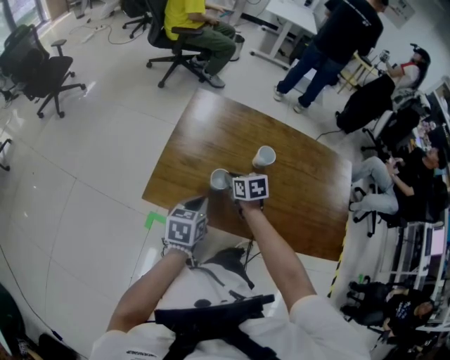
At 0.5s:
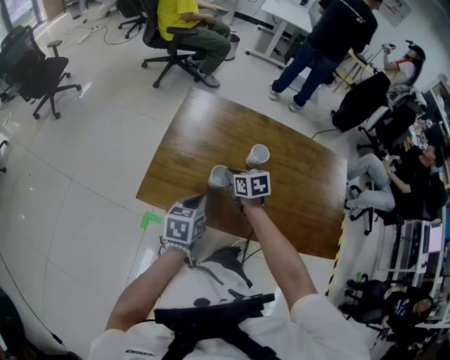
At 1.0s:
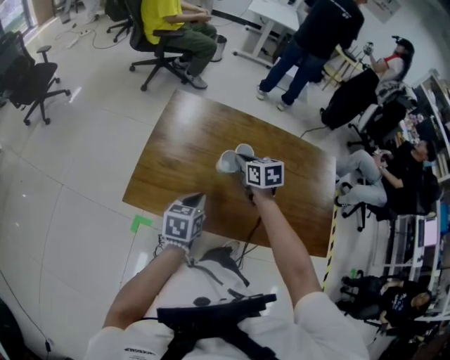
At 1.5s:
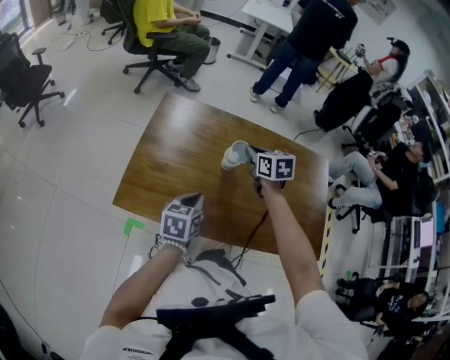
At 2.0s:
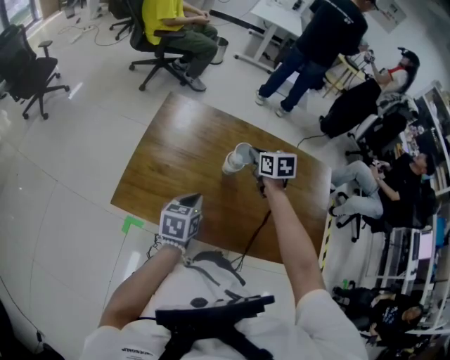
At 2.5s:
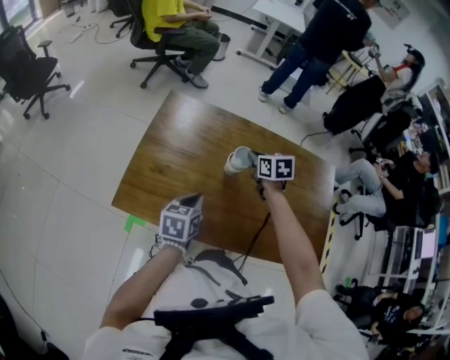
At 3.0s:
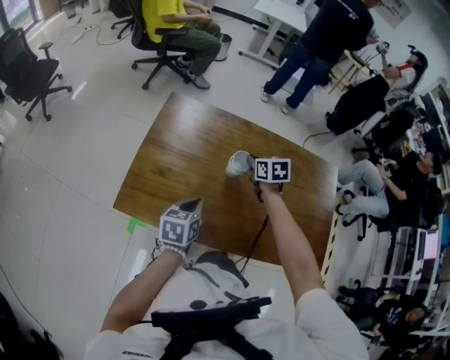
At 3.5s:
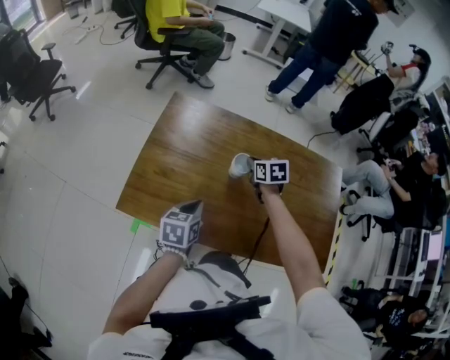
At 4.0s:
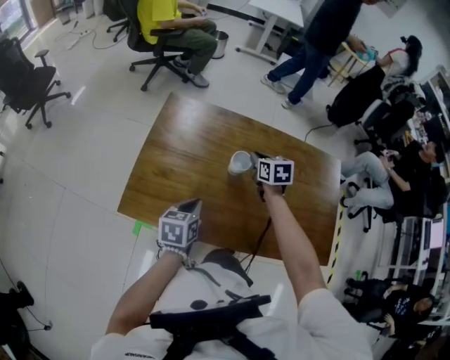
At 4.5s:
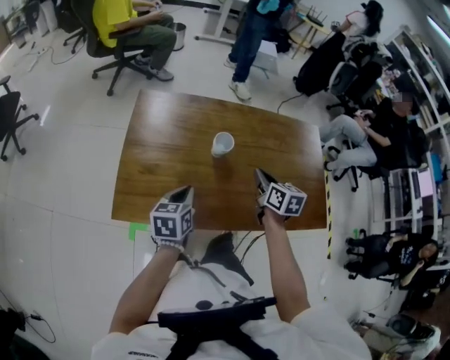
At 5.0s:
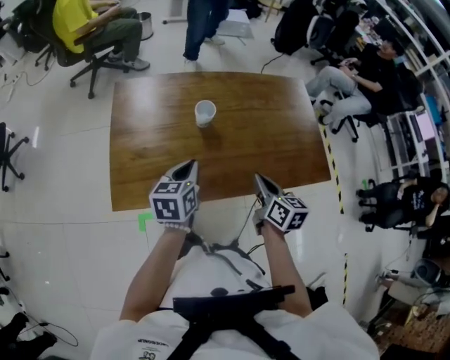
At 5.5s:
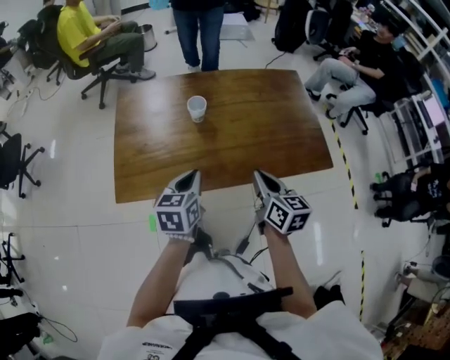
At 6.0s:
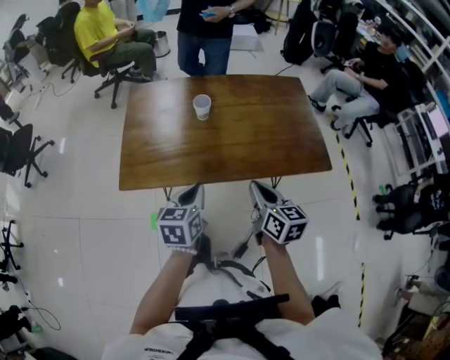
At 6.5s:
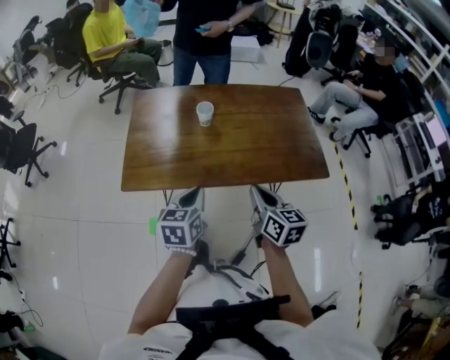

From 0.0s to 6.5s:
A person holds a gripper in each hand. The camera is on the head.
From 0.0s to 2.0s: The left gripper travels to the right and forward by about 10 cm. The right gripper shifts about 25 cm to the right, forward and upward.
From 2.0s to 4.5s: The right gripper shifts about 15 cm backward, and swivels approximately 30 degrees.
From 4.5s to 6.5s: The left gripper shifts some 20 cm backward and to the right. Meanwhile the right gripper moves backward, some 30 cm.

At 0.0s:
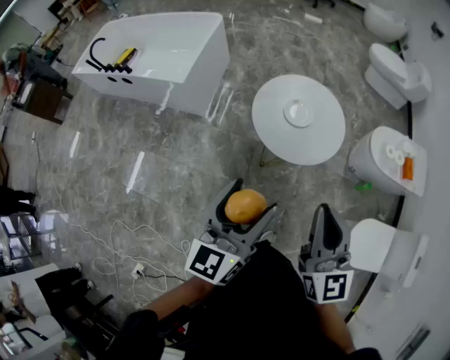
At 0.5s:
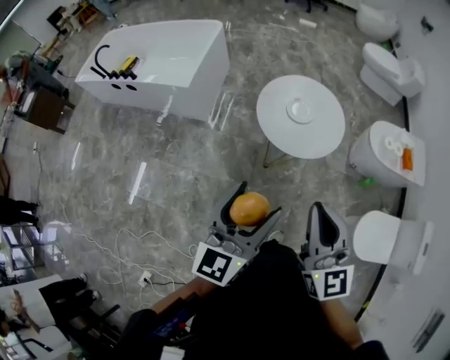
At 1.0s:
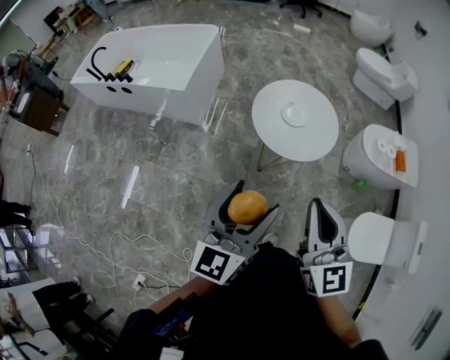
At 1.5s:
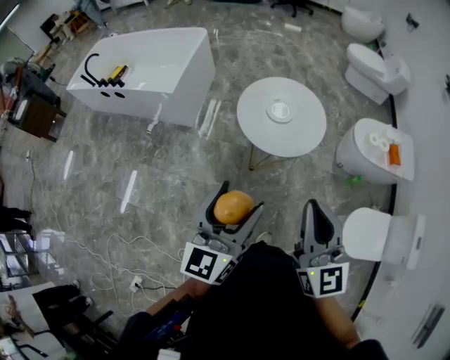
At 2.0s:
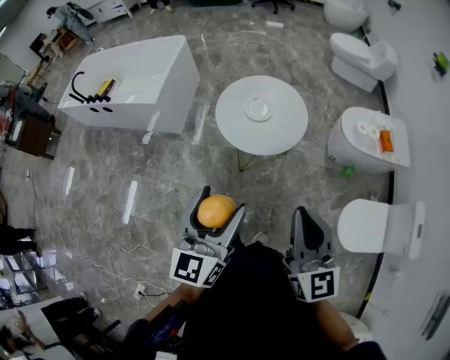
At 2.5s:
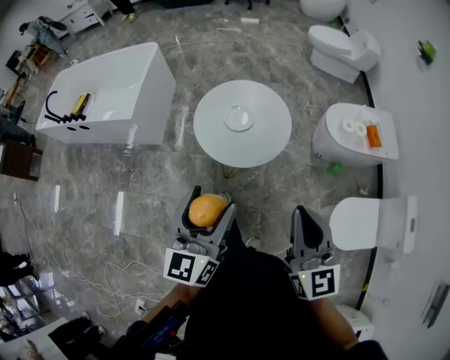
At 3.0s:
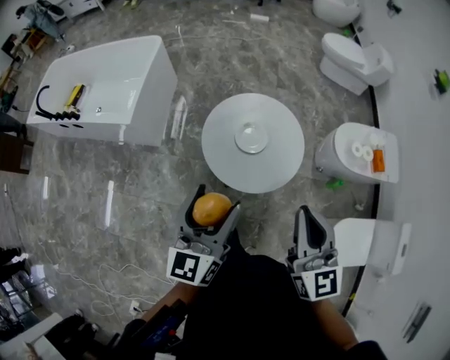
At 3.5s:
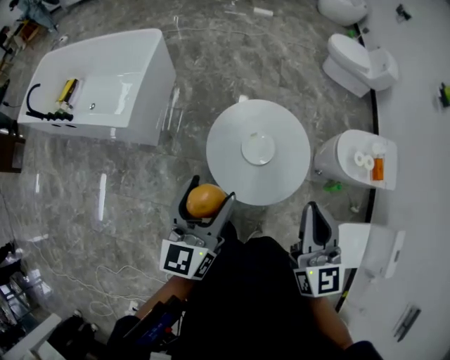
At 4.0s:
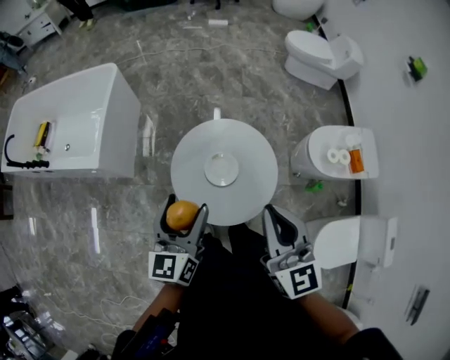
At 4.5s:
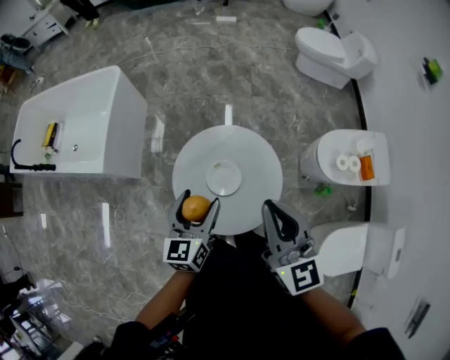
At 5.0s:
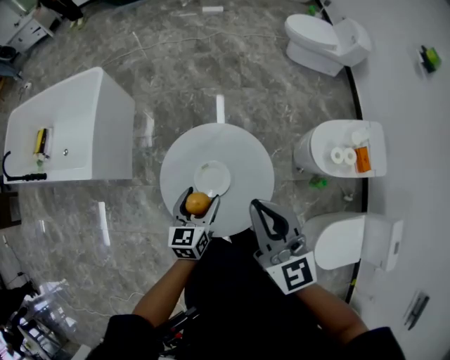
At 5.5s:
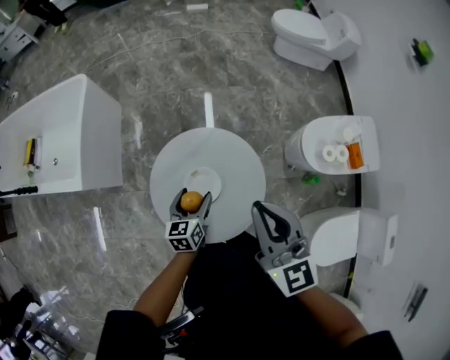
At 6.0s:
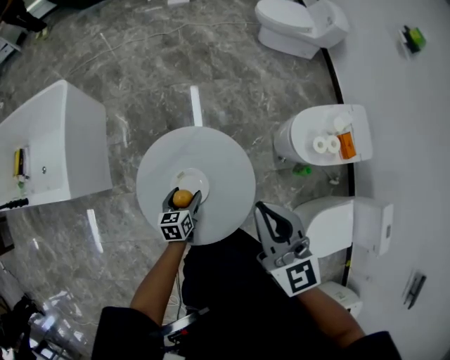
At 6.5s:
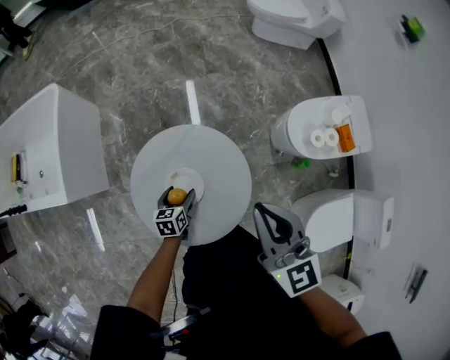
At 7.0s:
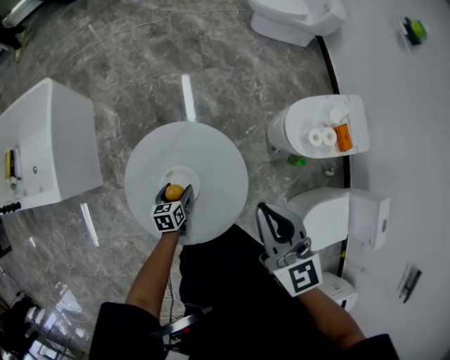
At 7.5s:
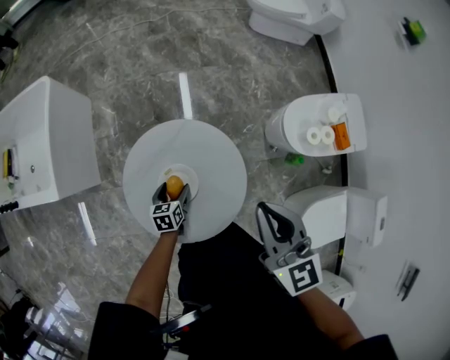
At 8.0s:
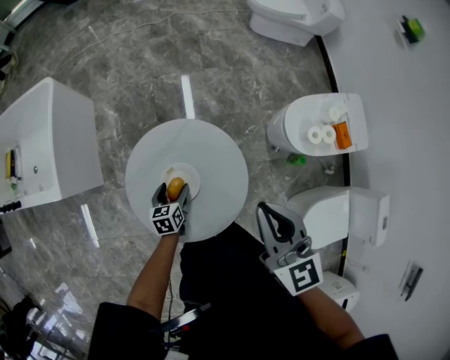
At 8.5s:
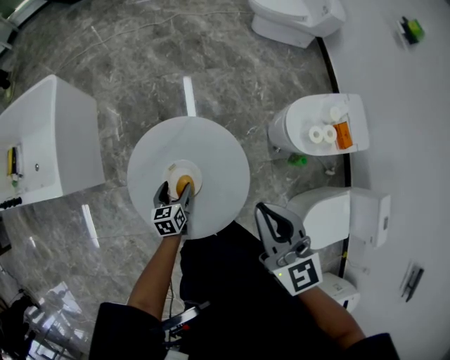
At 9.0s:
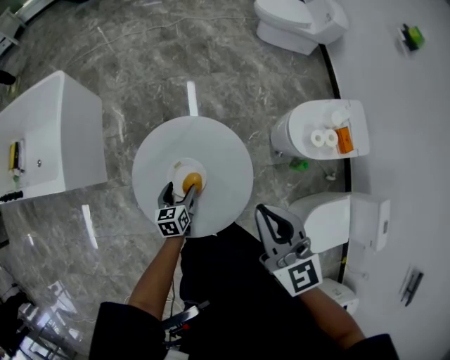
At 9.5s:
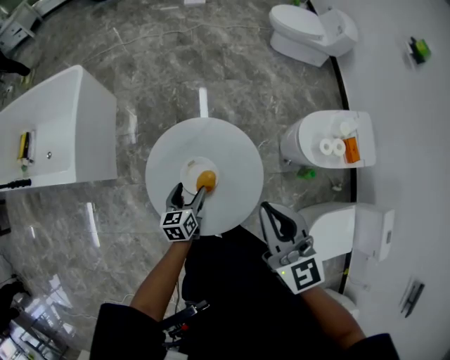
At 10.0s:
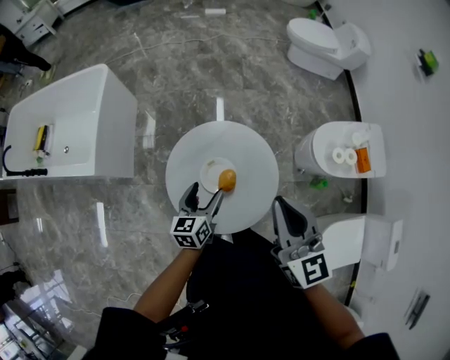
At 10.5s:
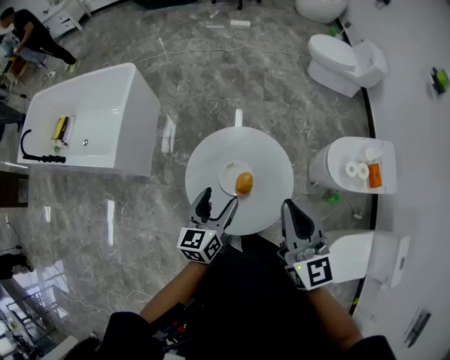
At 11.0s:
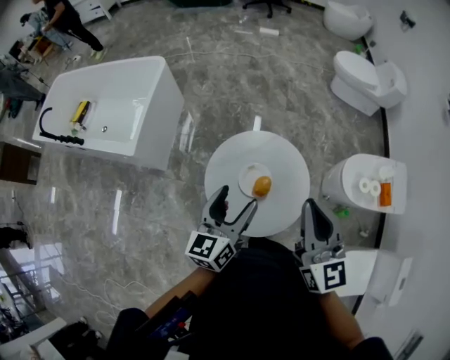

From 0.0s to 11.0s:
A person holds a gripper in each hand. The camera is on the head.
From 0.0s to 2.0s: Both grippers move backward and to the right, some 10 cm.
From 2.0s to 3.5s: The grippers both shift forward by about 30 cm.
From 3.5s to 5.5s: The left gripper goes approximately 35 cm downward, forward and to the right, and points its fingers roughly 30 degrees further downward, while the right gripper travels forward and to the right by some 20 cm.
From 5.5s to 7.5s: The left gripper heads downward, covering roughly 15 cm; the right gripper shifts approximately 5 cm to the right.
From 7.5s to 9.0s: The left gripper changes place by about 5 cm.
From 9.0s to 11.0s: The left gripper goes about 30 cm upward, and points its fingers roughly 30 degrees further upward, while the right gripper is displaced upward and to the left by some 10 cm.

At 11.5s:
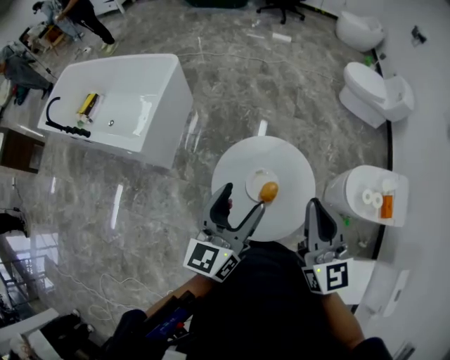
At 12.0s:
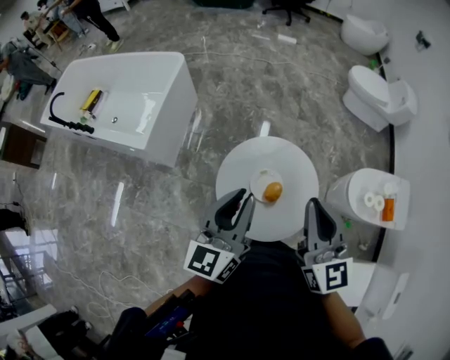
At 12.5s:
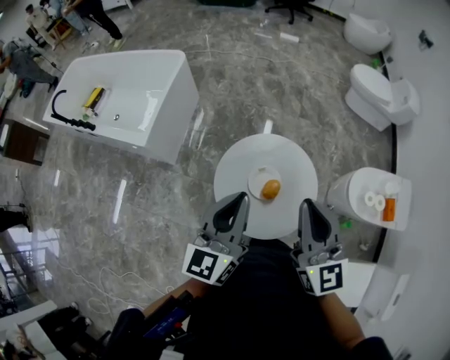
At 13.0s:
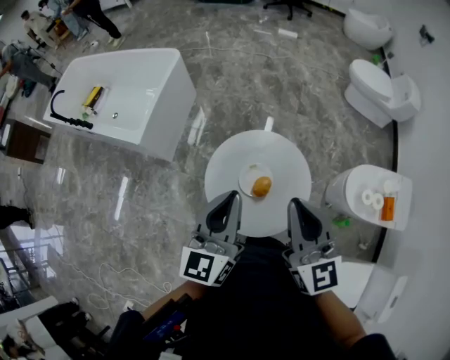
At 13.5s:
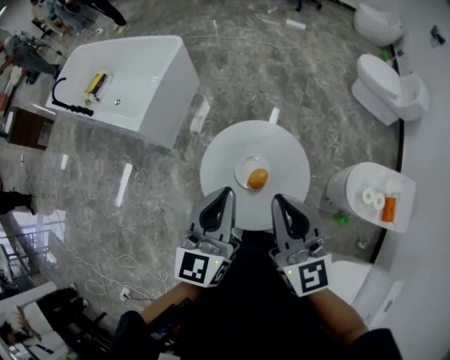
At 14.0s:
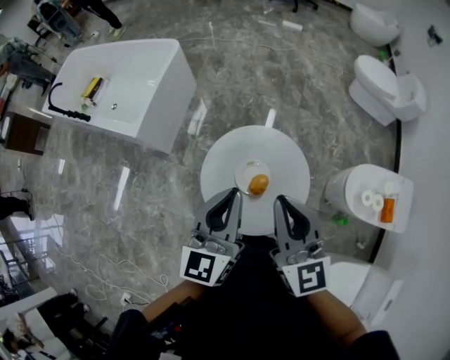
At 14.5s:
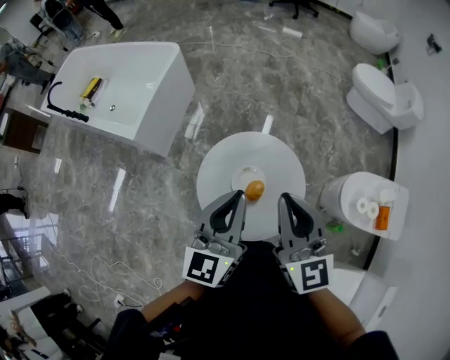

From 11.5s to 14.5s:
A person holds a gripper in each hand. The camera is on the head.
From 11.5s to 13.0s: The left gripper closes up.
From 13.0s to 14.5s: The grippers stay close to where they were, moving slightly.

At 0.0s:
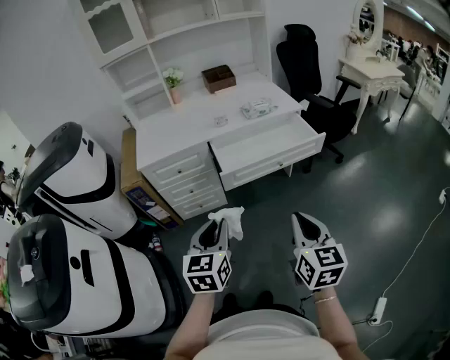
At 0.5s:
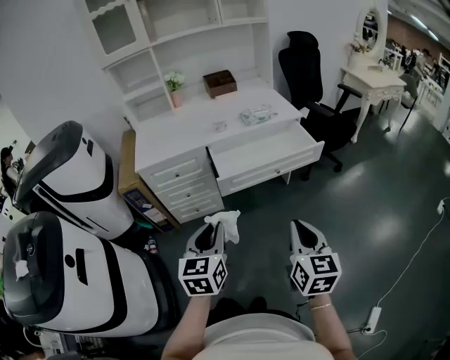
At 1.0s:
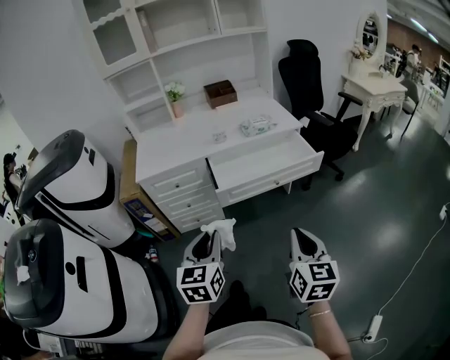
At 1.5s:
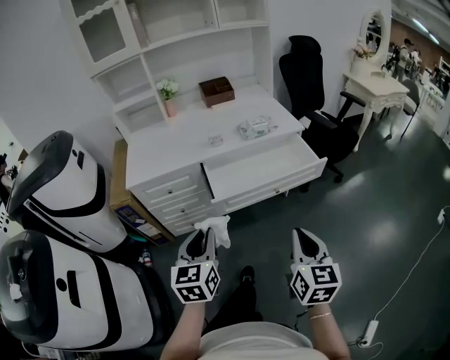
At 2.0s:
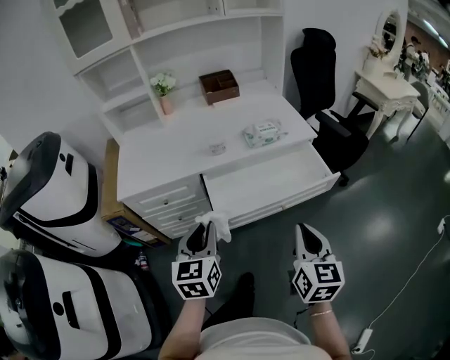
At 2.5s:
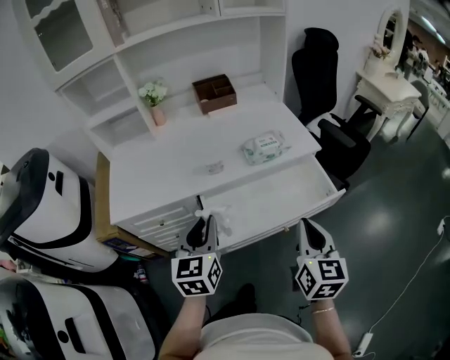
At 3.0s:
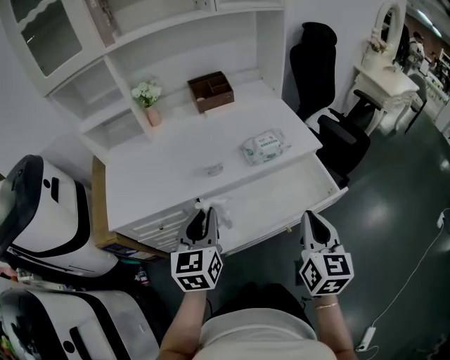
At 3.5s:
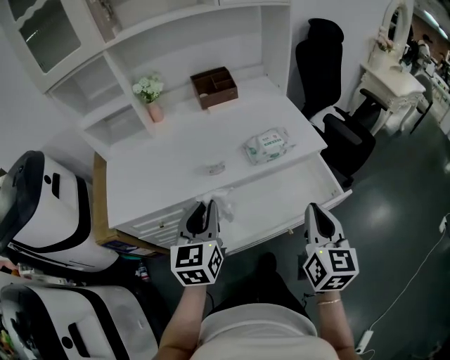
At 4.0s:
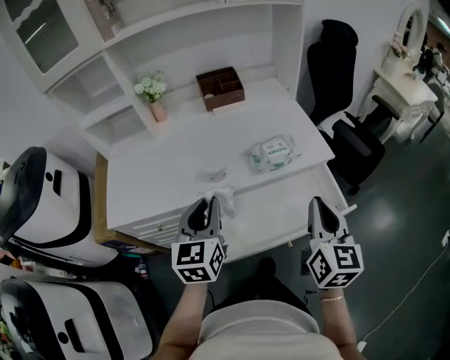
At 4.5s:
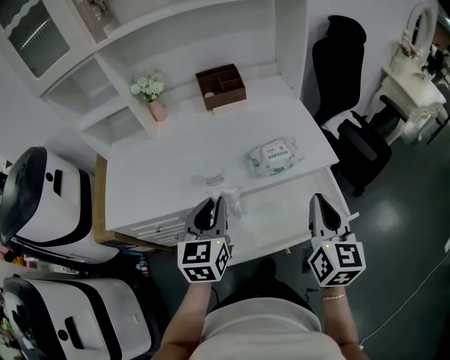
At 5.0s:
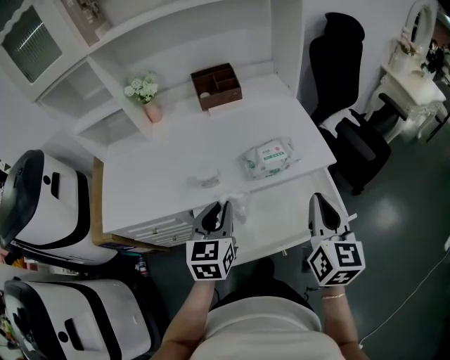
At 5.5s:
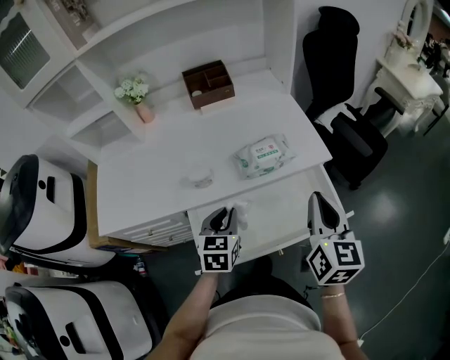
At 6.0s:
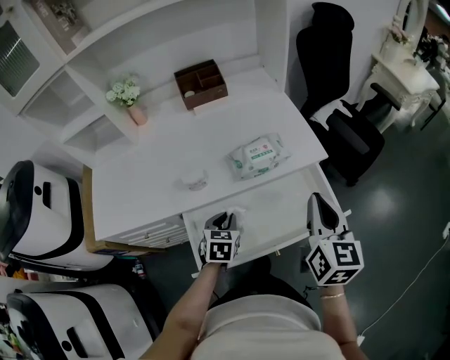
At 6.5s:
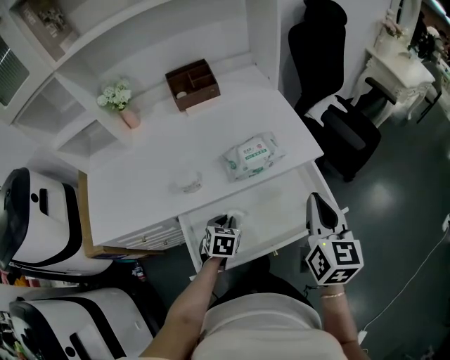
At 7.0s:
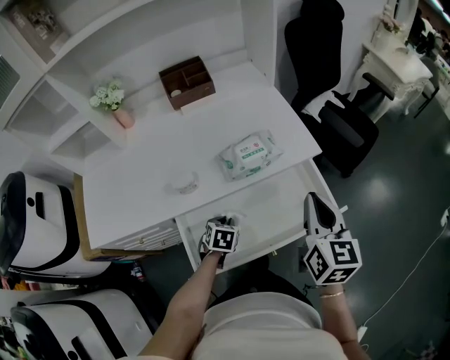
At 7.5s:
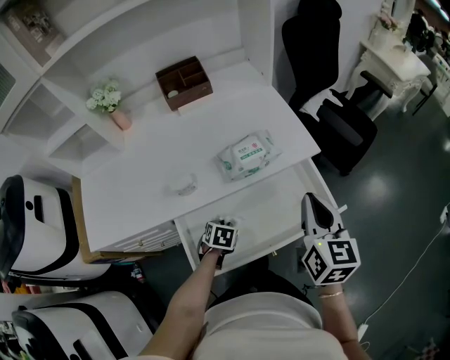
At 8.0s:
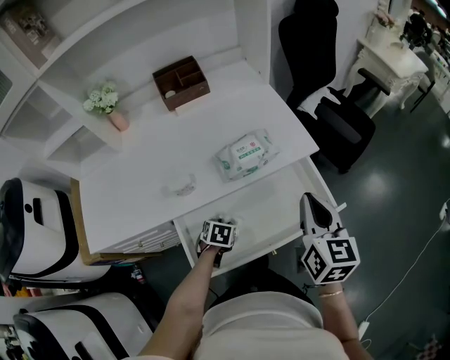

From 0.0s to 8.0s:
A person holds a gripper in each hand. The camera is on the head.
From 0.0s to 2.0s: The grippers both shift forward by approximately 25 cm.
From 2.0s to 4.0s: Both grippers move forward, roughly 25 cm.
From 4.0s to 6.0s: The left gripper goes roughly 25 cm downward and to the right, and angles its fingers downward, by roughly 30 degrees; the right gripper is displaced forward and to the right by about 10 cm.
From 6.0s to 8.0s: The left gripper shifts approximately 10 cm downward, and changes its angle by some 20 degrees.
